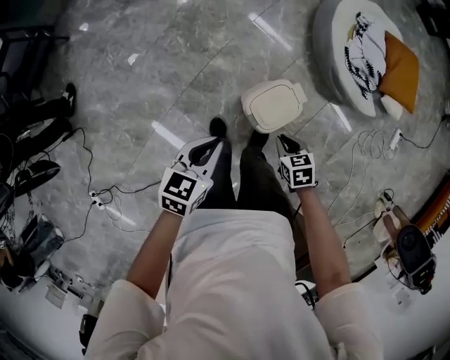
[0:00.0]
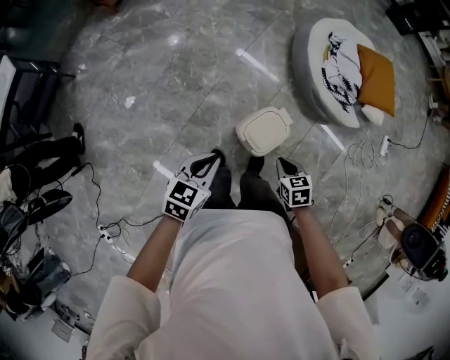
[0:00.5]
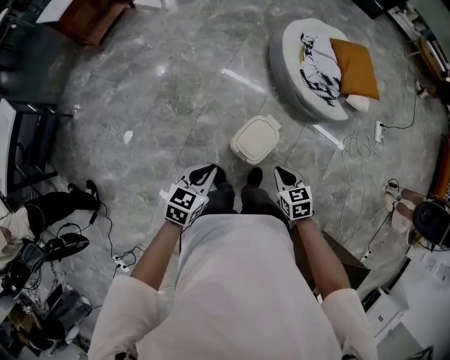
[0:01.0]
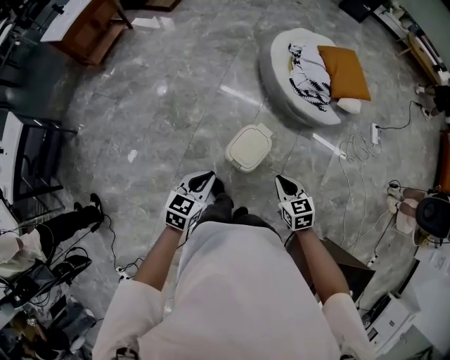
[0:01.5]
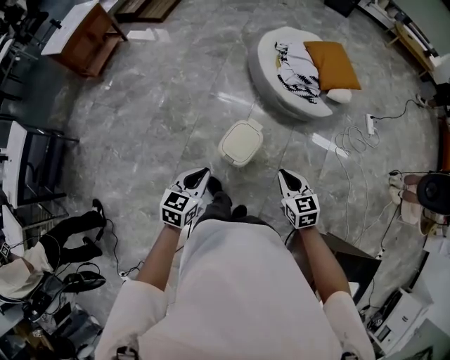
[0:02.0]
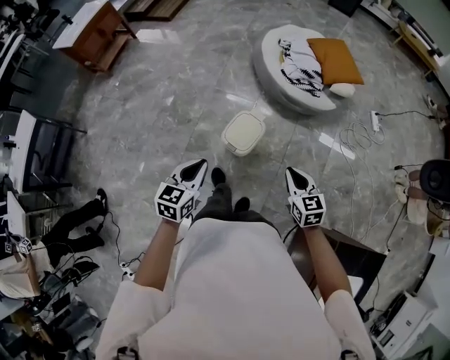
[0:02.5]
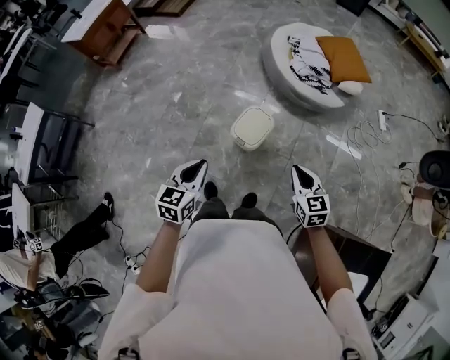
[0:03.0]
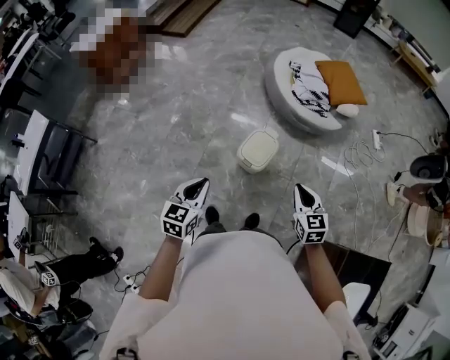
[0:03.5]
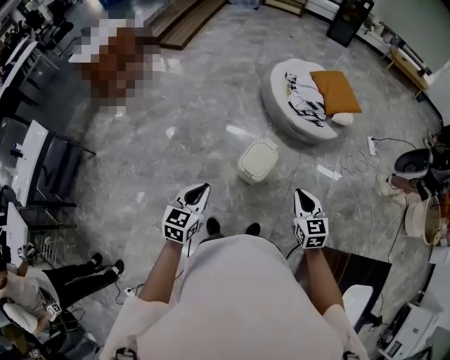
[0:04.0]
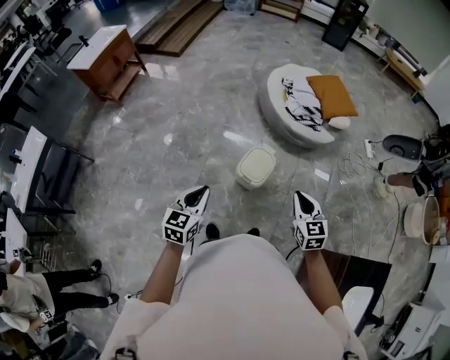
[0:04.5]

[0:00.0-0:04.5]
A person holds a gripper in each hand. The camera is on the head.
0:00.0 to 0:02.0: The right gripper heads upward and to the right, covering roughly 25 cm, and rotates some 40 degrees; the left gripper moves upward, to the right and backward, some 15 cm, and rotates about 20 degrees.
0:02.0 to 0:04.5: The right gripper moves backward and upward, some 10 cm. The left gripper moves to the left, backward and upward, approximately 15 cm.

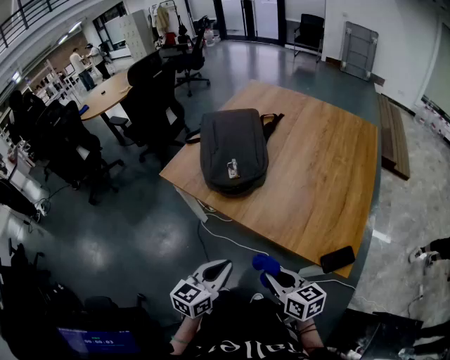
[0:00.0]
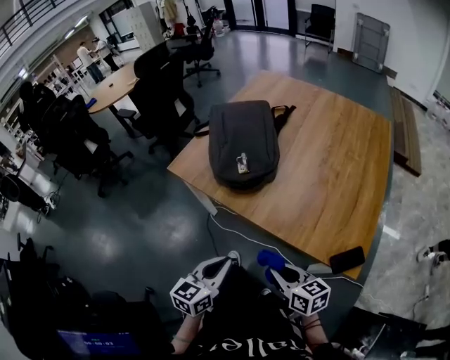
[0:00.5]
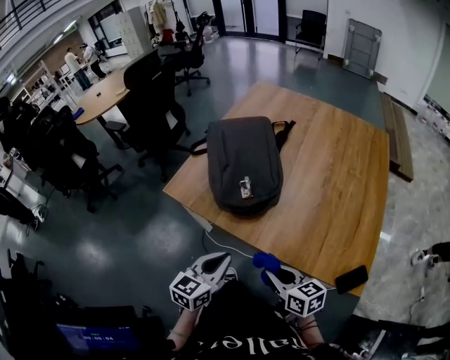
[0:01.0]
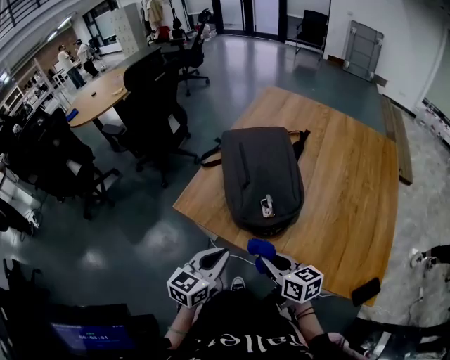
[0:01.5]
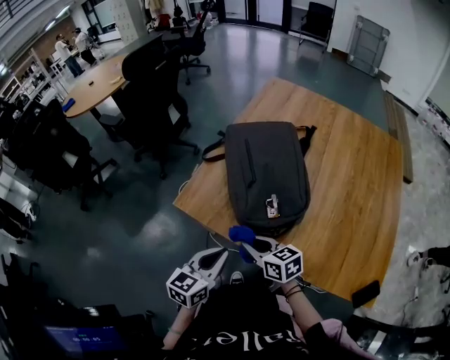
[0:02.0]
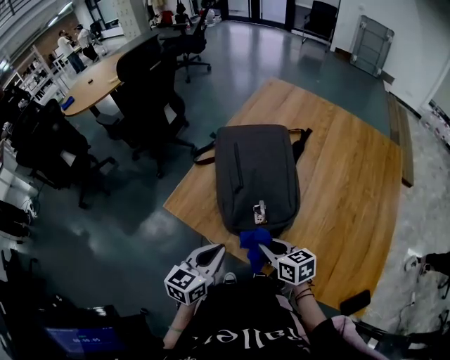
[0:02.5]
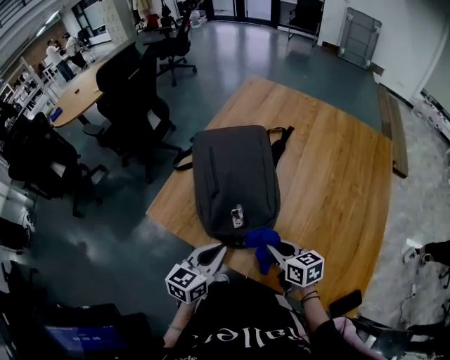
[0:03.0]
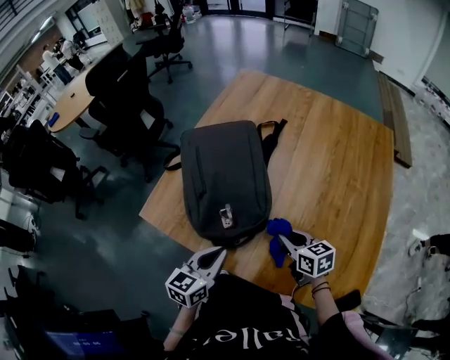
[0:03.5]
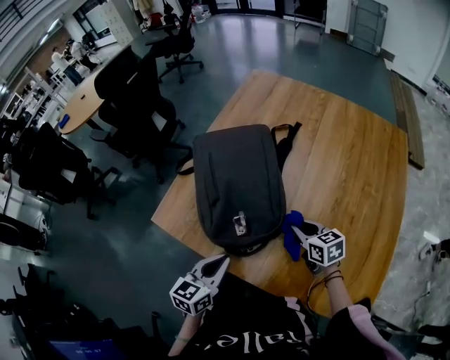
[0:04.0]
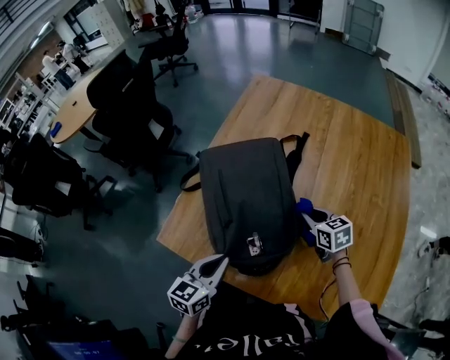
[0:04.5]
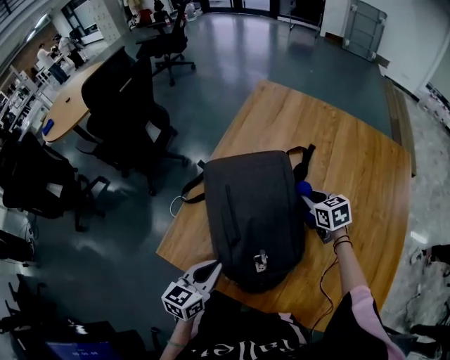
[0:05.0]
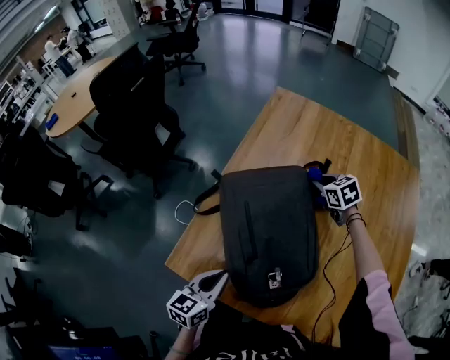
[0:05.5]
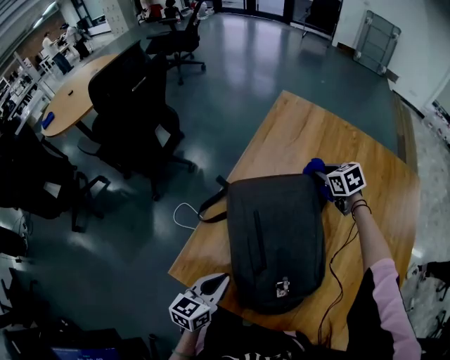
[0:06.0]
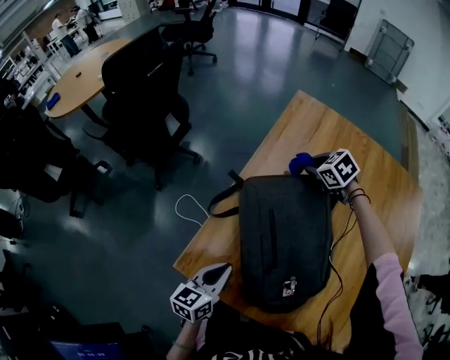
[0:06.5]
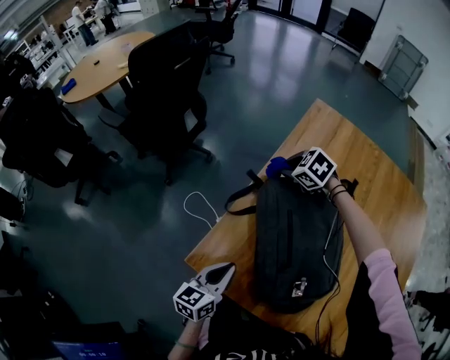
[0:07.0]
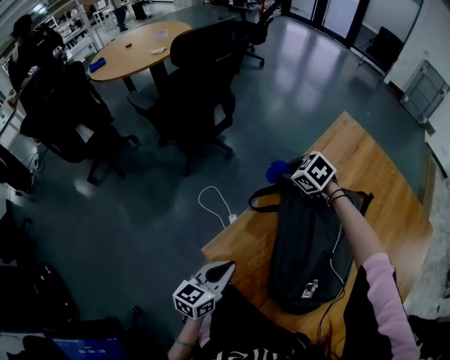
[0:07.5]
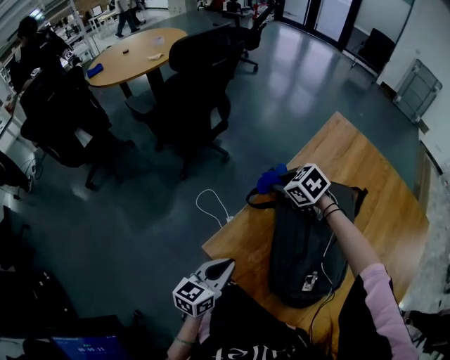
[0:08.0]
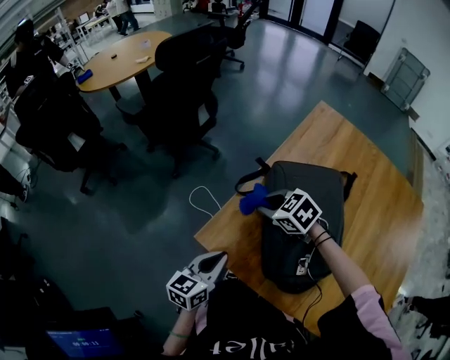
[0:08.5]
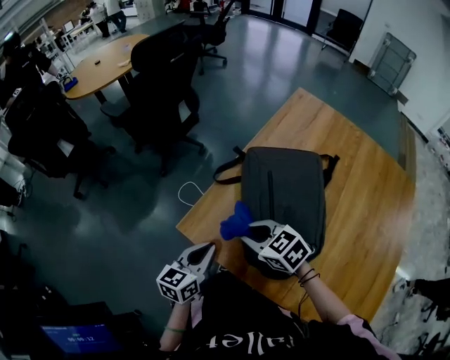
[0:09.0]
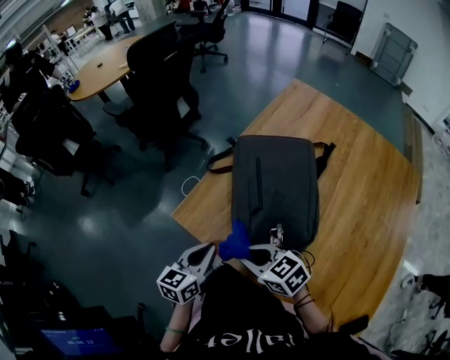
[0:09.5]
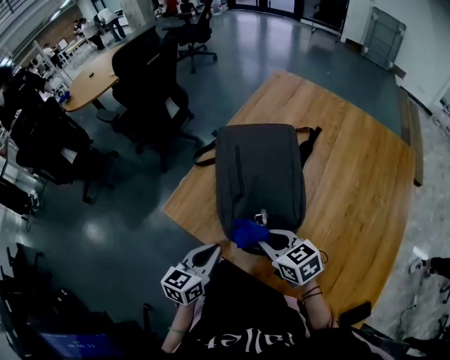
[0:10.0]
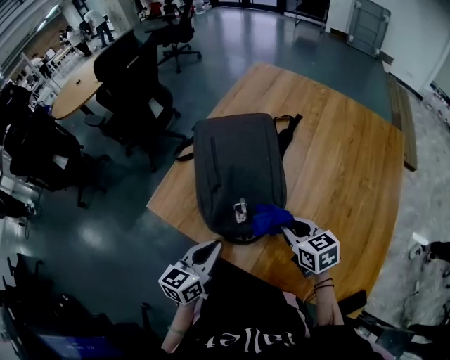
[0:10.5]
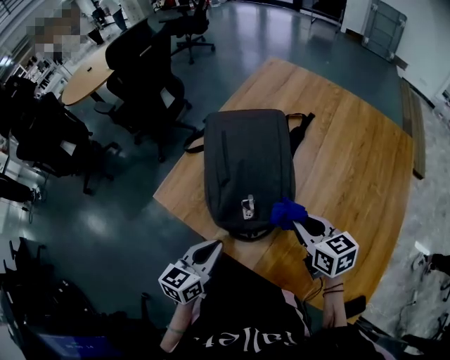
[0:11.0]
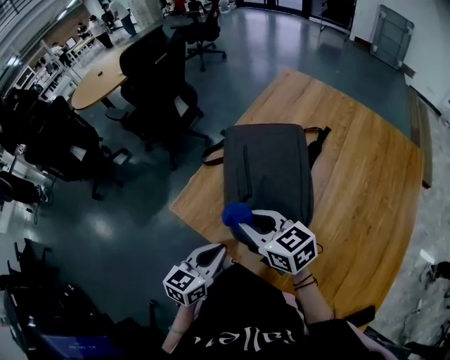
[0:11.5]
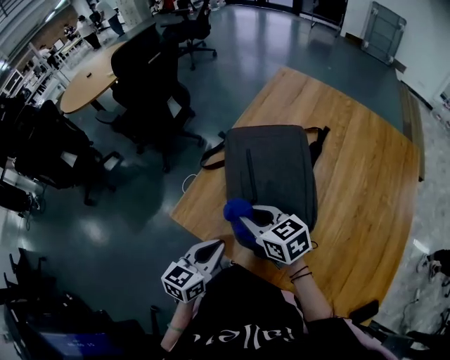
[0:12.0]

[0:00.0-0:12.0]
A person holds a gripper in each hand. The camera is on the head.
0:00.0 to 0:02.0: Both grippers travel together forward and to the left, approximately 35 cm.
0:02.0 to 0:04.0: The right gripper is displaced to the right by approximately 30 cm; the left gripper moves to the right and forward, approximately 15 cm.
0:04.0 to 0:06.0: The left gripper heads to the left and forward, covering about 20 cm; the right gripper moves forward, roughly 40 cm, and turns by about 30 degrees.
0:06.0 to 0:08.0: The right gripper shifts by about 40 cm, and changes its angle by about 40 degrees. The left gripper shifts by about 10 cm.
0:08.0 to 0:10.0: The right gripper goes roughly 40 cm backward, and rotates some 40 degrees. Meanwhile the left gripper is displaced backward and to the right by about 20 cm.
0:10.0 to 0:12.0: The left gripper goes to the right and returns, approximately 5 cm each way. The right gripper travels forward and to the left by approximately 15 cm.

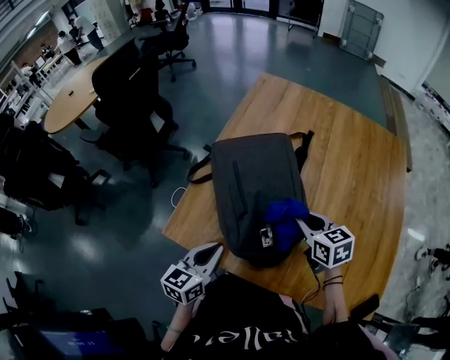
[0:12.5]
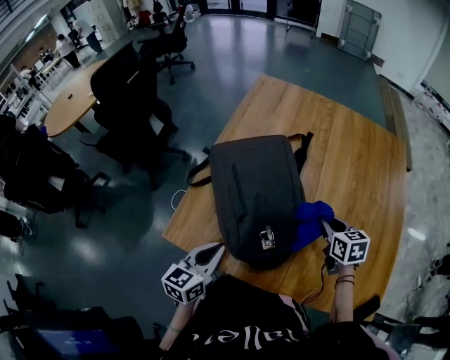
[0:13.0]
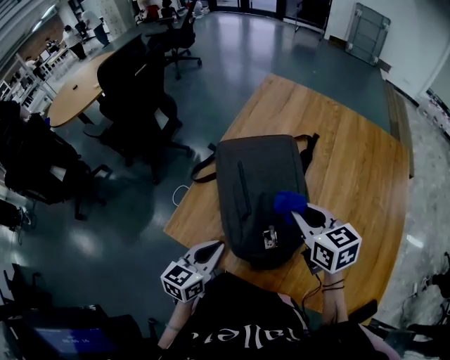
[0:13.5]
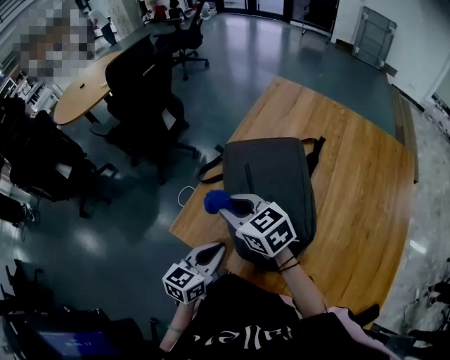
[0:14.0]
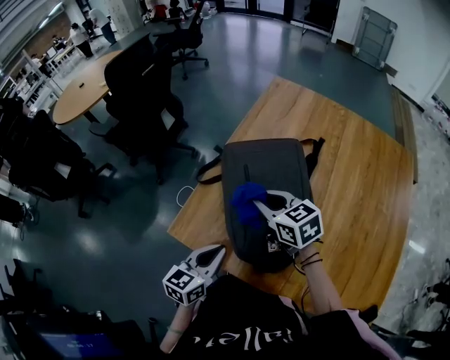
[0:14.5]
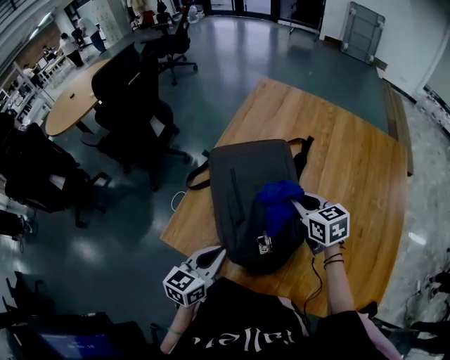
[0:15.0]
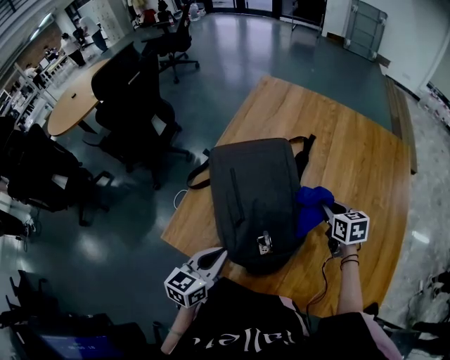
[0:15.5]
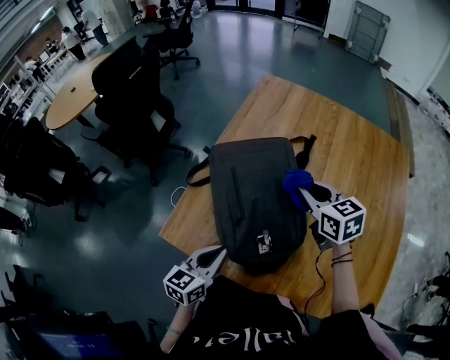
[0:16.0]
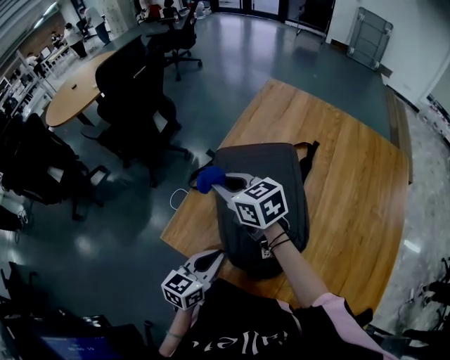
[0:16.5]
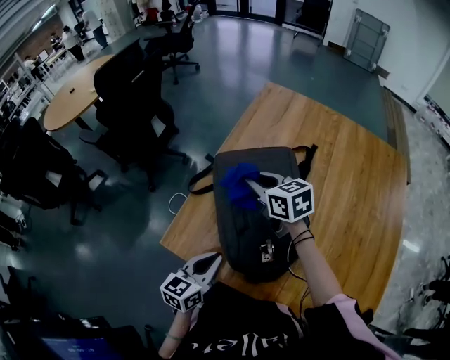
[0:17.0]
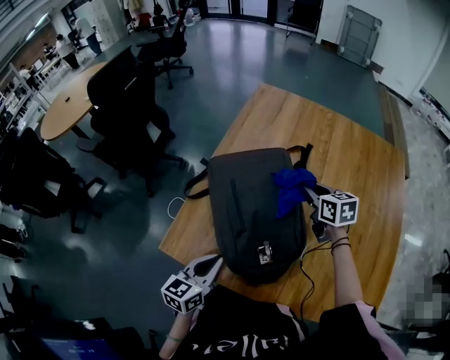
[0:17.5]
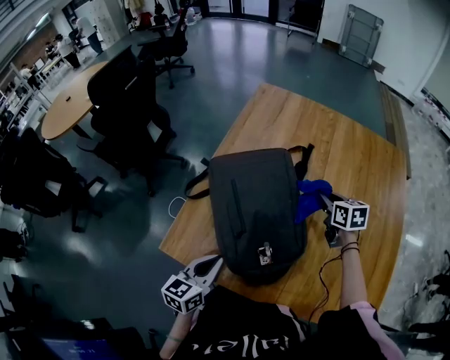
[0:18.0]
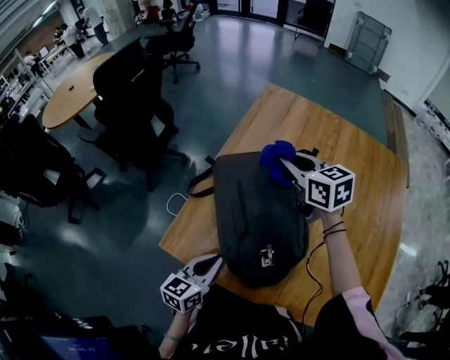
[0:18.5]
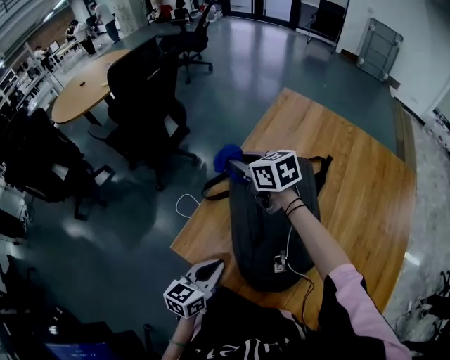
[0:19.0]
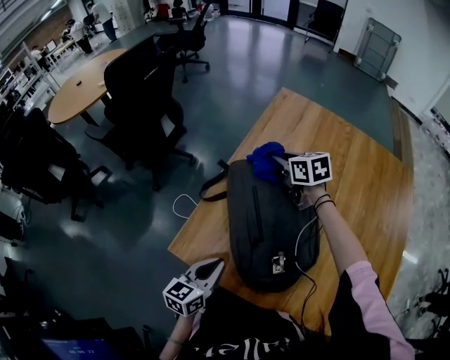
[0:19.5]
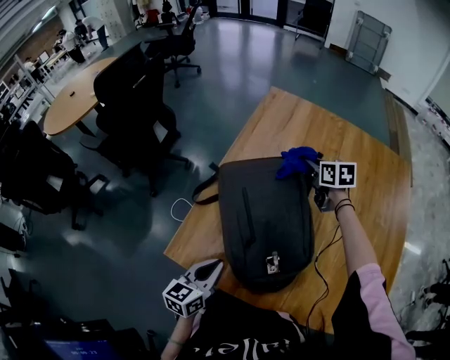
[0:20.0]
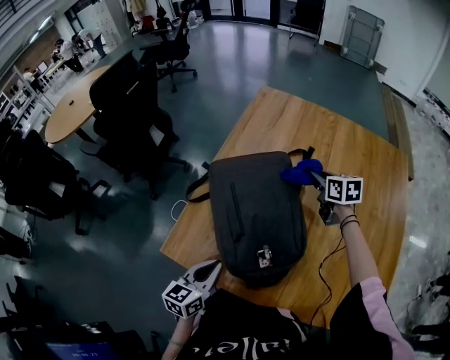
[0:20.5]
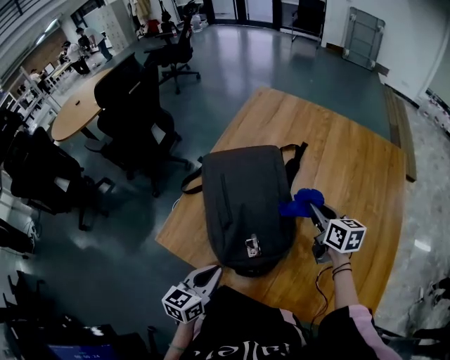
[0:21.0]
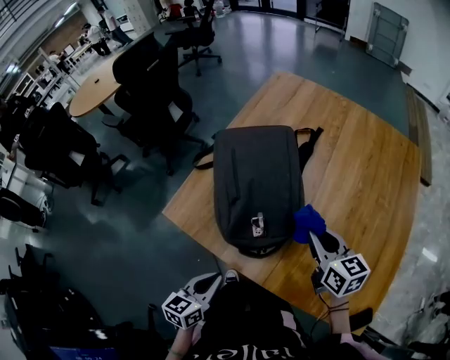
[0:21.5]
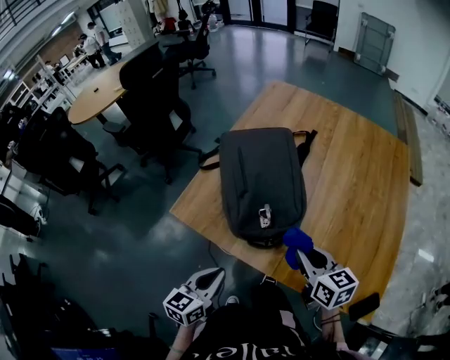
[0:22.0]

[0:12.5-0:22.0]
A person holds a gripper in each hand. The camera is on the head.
0:12.5 to 0:14.5: The right gripper moves left and right over roughly 35 cm, changing direction 2 times.
0:14.5 to 0:16.5: The right gripper travels to the right and back again, about 30 cm each way.
0:16.5 to 0:18.0: The right gripper is displaced to the right by some 35 cm, and rotates approximately 40 degrees.
0:18.0 to 0:20.0: The right gripper heads forward, covering about 15 cm, and reaches approximately 40 cm to the left, then returns.
0:20.0 to 0:22.0: The left gripper travels backward by some 20 cm; the right gripper goes roughly 50 cm backward.

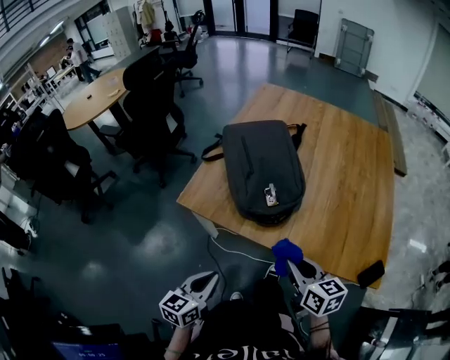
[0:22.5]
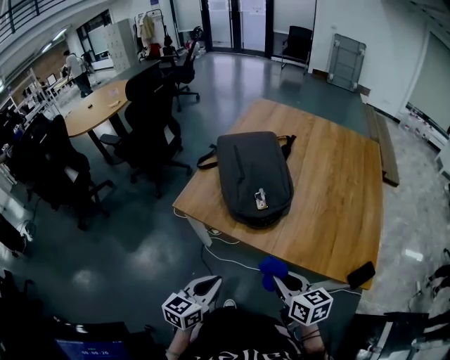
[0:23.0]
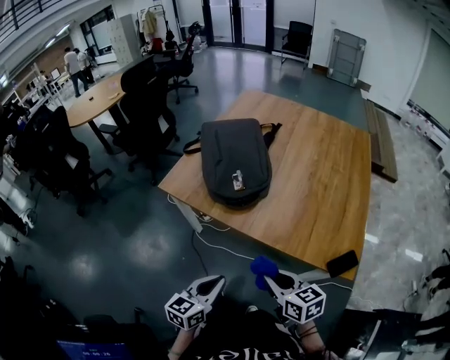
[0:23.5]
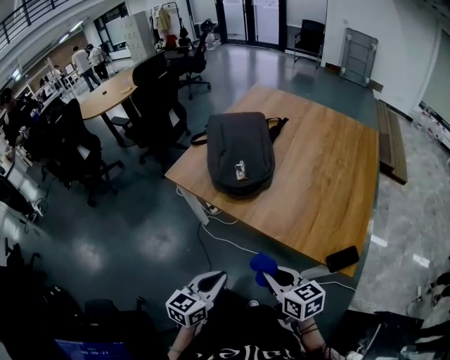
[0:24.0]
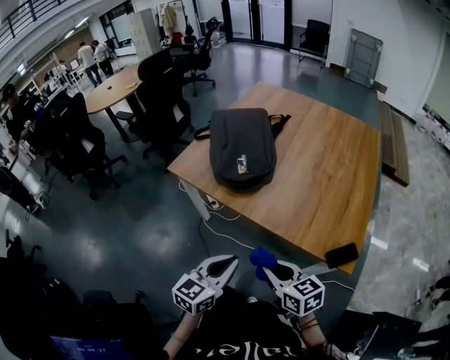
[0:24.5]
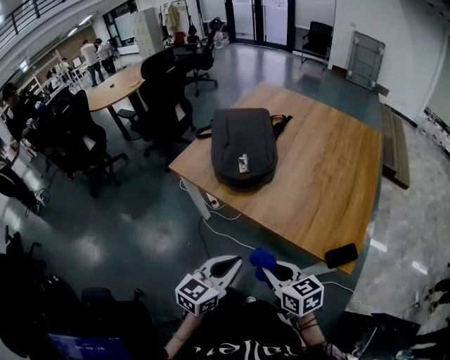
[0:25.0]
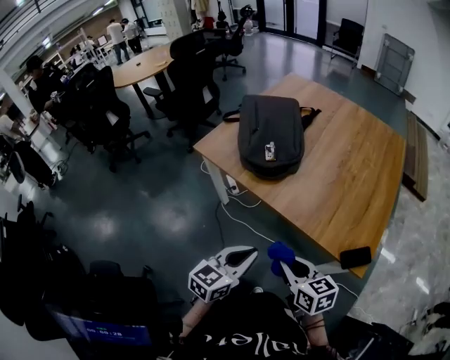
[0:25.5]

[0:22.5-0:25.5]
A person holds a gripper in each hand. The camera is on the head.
0:22.5 to 0:24.0: The left gripper goes approximately 25 cm to the right and backward, while the right gripper heads backward and to the right, covering about 20 cm.
